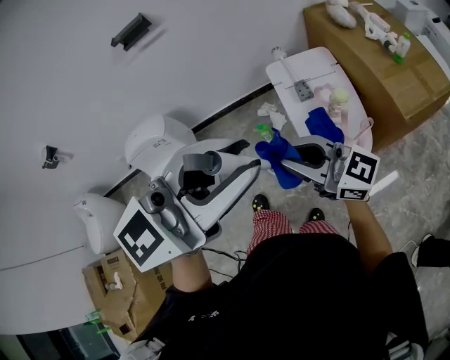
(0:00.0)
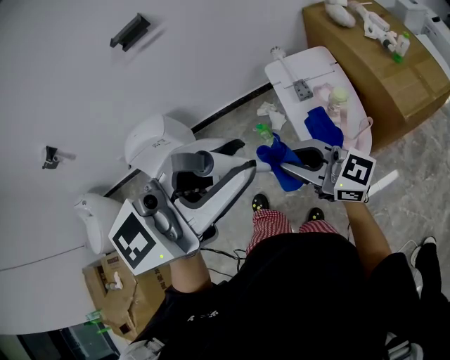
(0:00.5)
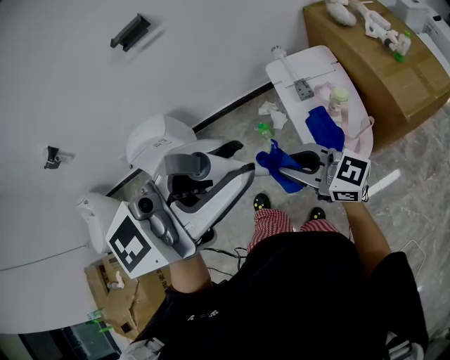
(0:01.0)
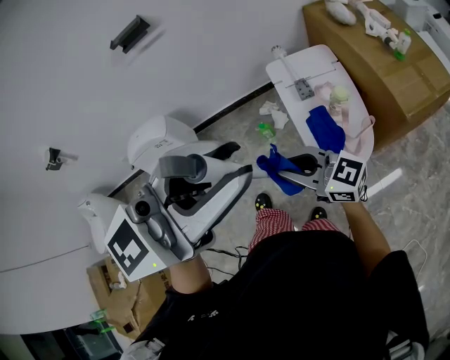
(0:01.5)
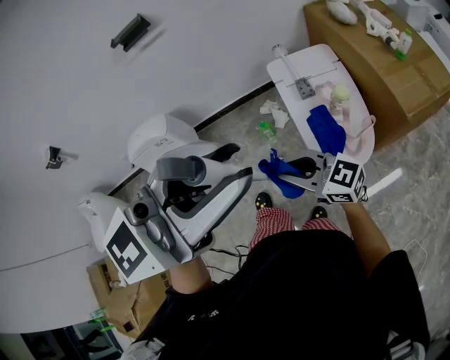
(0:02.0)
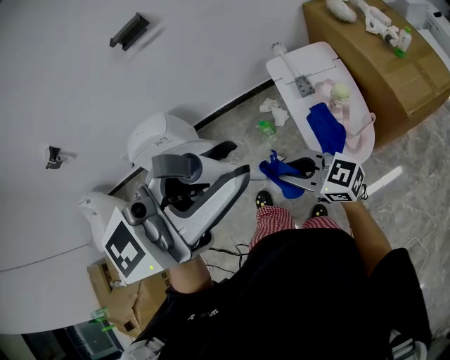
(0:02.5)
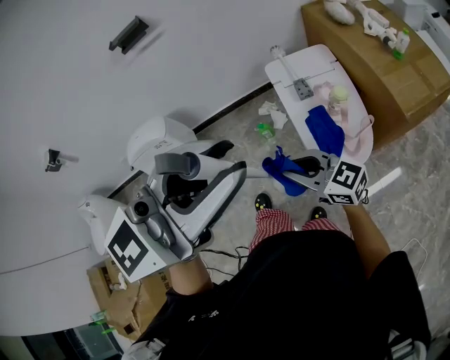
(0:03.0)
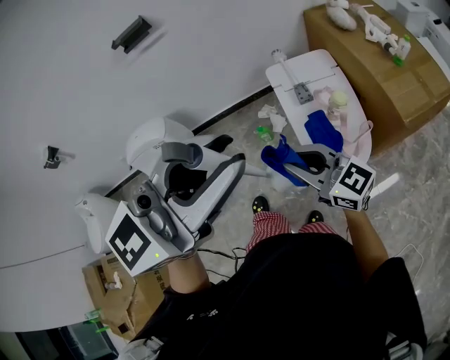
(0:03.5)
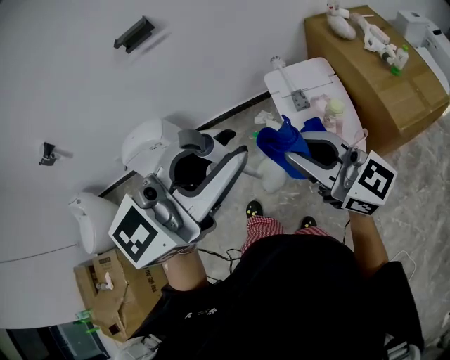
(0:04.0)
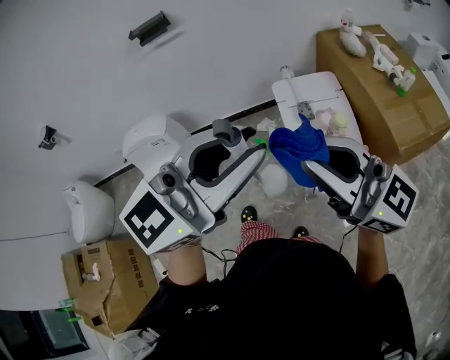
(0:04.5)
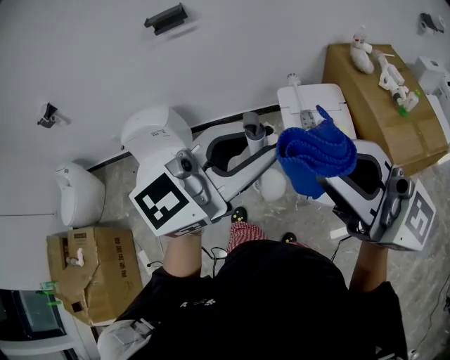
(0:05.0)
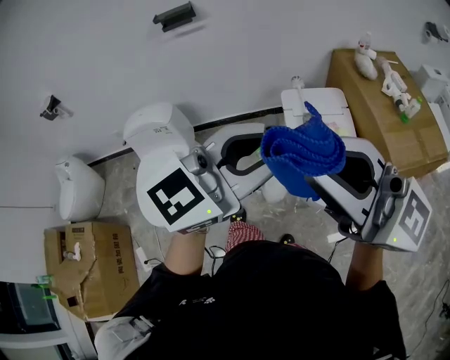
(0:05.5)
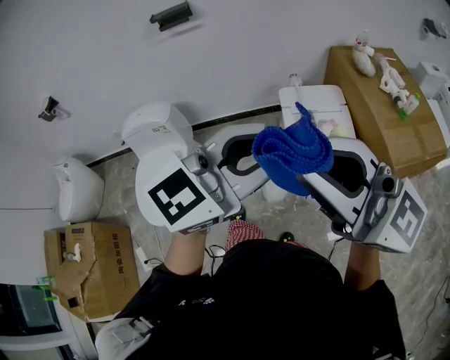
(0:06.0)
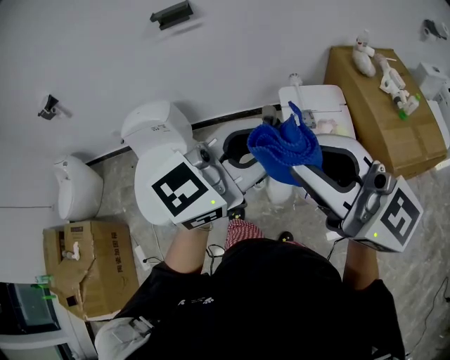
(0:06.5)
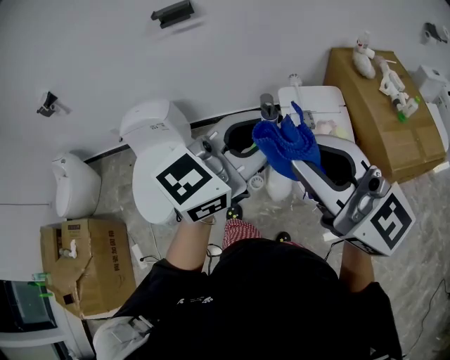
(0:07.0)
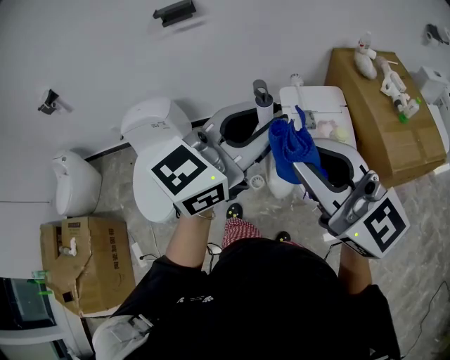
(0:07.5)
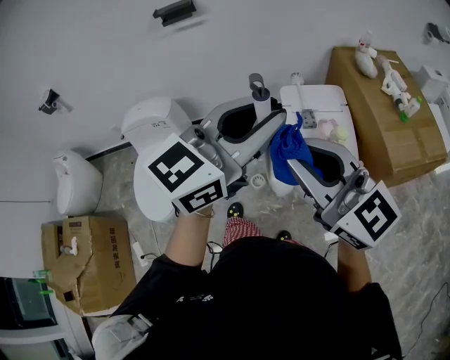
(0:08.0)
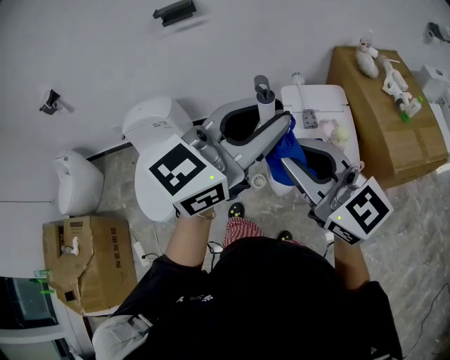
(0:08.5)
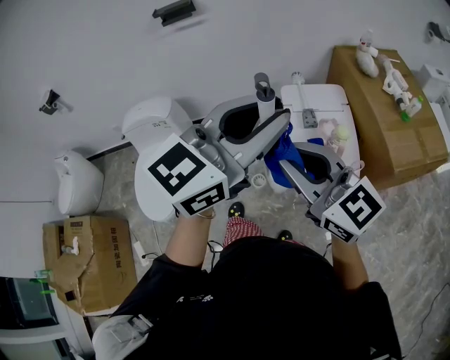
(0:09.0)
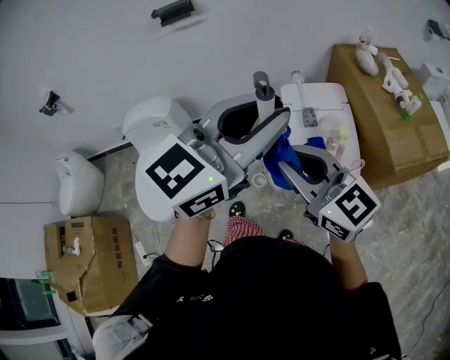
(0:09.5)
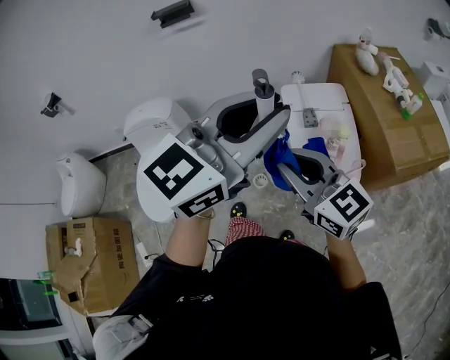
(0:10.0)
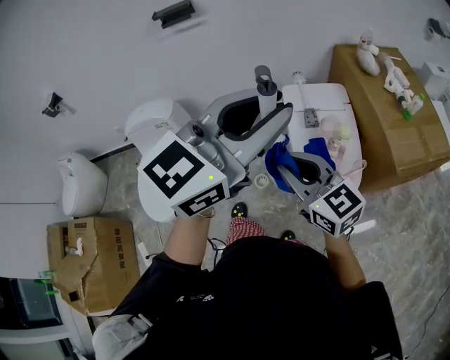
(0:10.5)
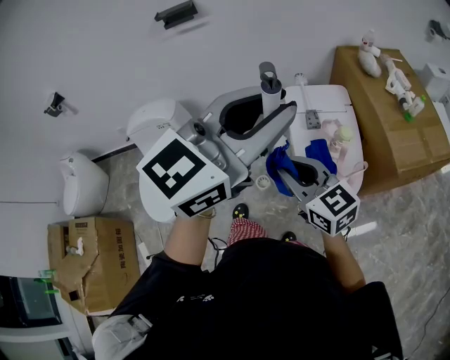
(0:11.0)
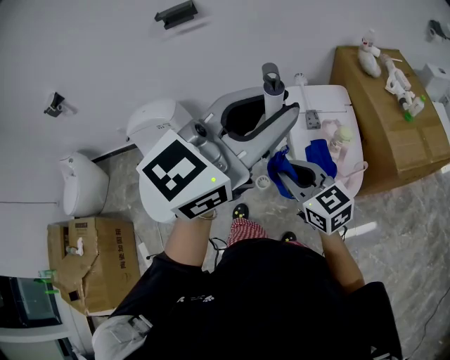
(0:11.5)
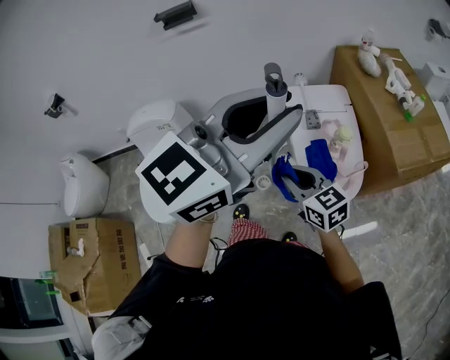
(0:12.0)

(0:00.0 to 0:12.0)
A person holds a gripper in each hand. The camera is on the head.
0:00.0 - 0:02.0: The right gripper shifts about 10 cm downward.
0:02.0 - 0:04.0: The right gripper is displaced upward by some 15 cm, and rotates about 20 degrees.
0:04.0 - 0:06.0: The right gripper is displaced upward by roughly 15 cm.
0:06.0 - 0:08.0: The left gripper shifts by about 5 cm, while the right gripper shifts some 5 cm downward, and swivels approximately 20 degrees.
0:08.0 - 0:10.0: The right gripper moves downward, about 10 cm.
0:10.0 - 0:12.0: The right gripper travels downward by about 15 cm.

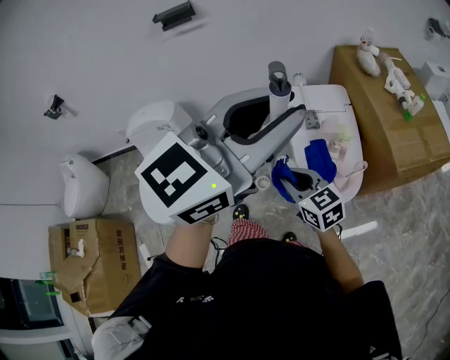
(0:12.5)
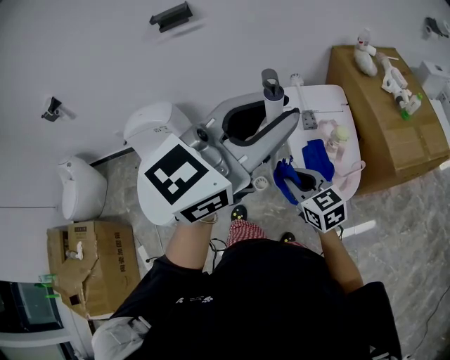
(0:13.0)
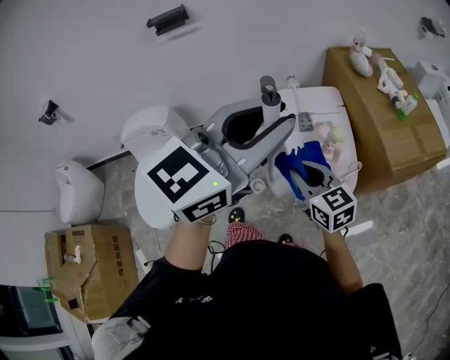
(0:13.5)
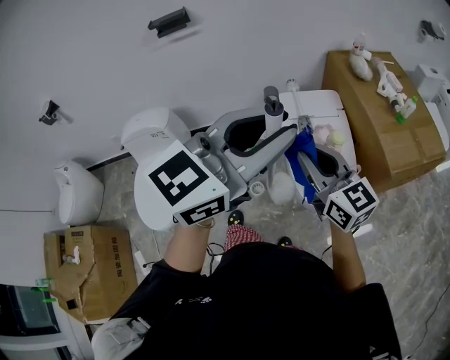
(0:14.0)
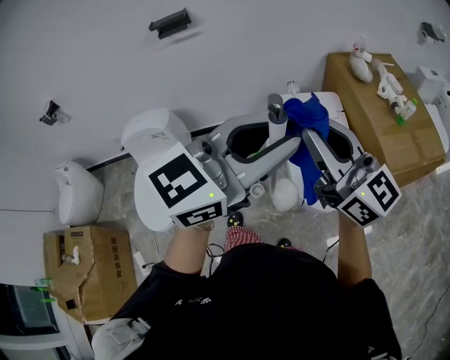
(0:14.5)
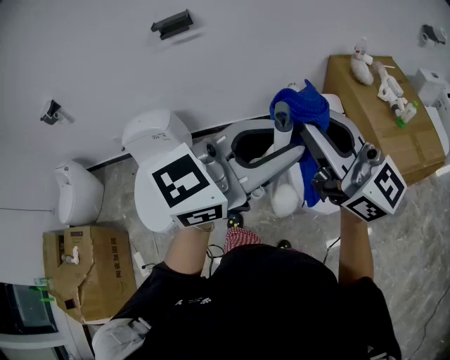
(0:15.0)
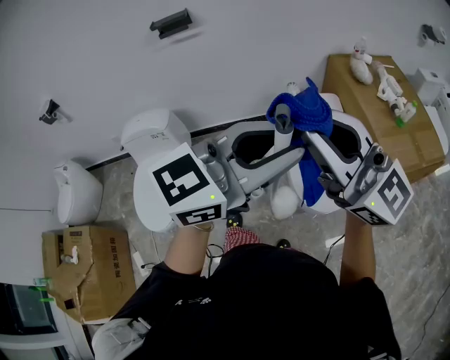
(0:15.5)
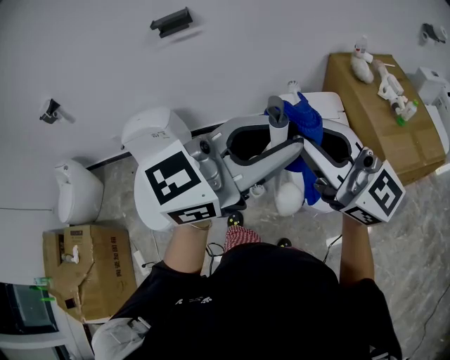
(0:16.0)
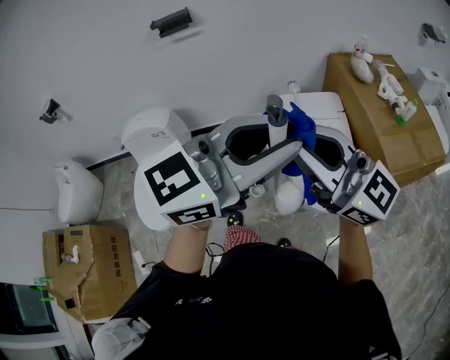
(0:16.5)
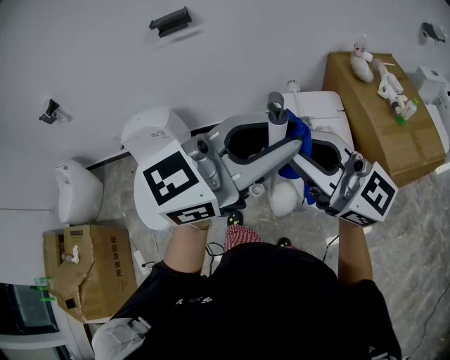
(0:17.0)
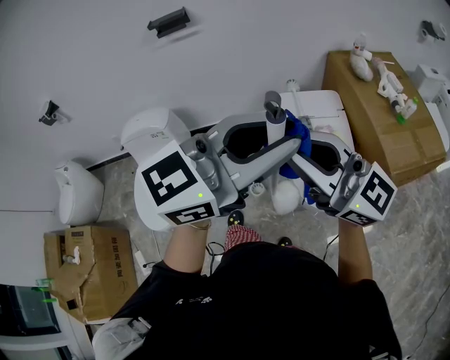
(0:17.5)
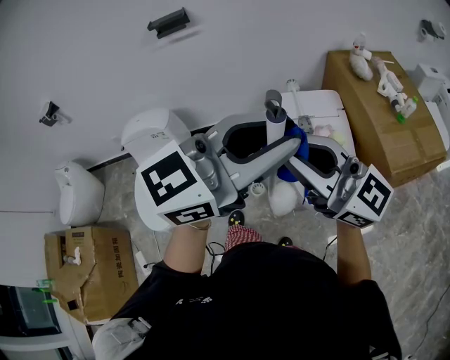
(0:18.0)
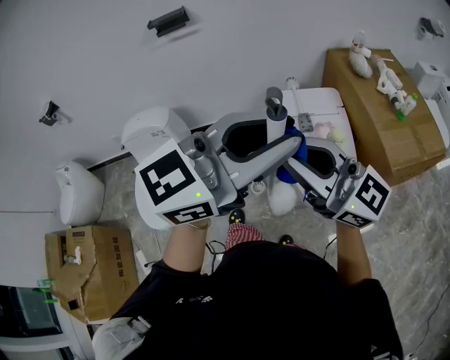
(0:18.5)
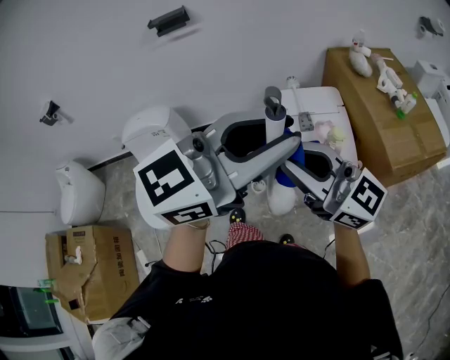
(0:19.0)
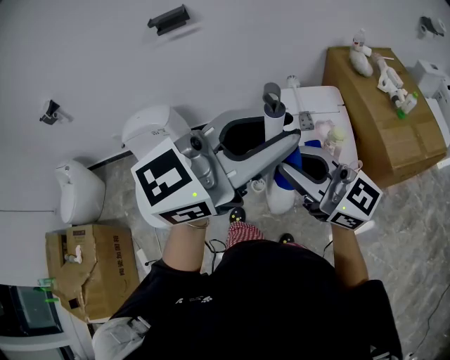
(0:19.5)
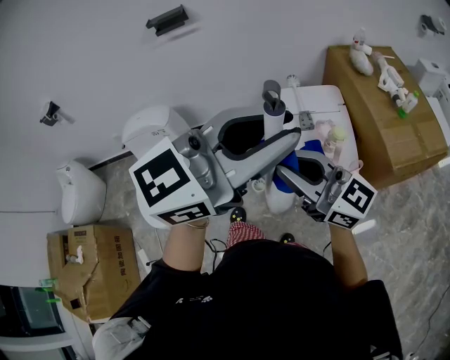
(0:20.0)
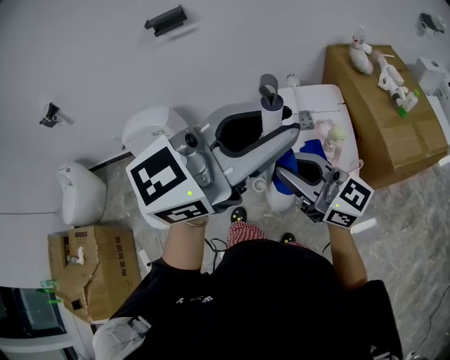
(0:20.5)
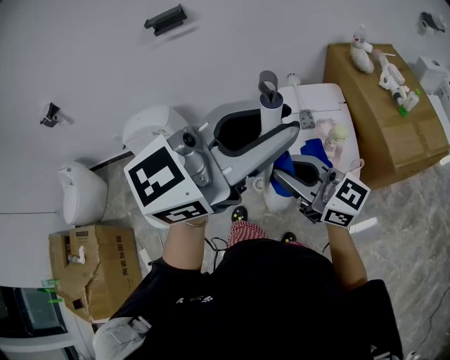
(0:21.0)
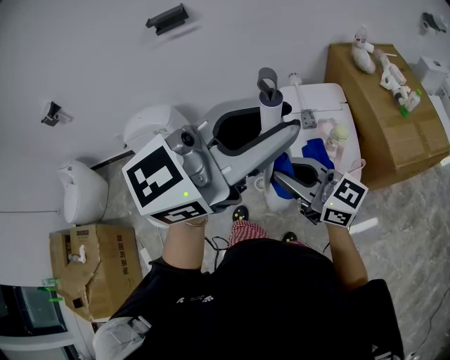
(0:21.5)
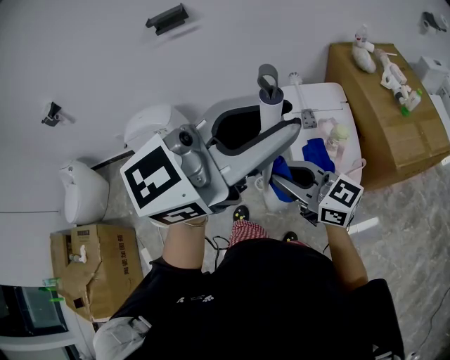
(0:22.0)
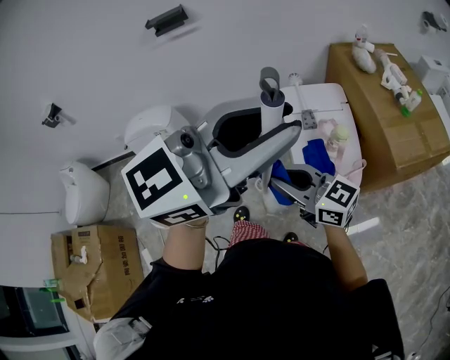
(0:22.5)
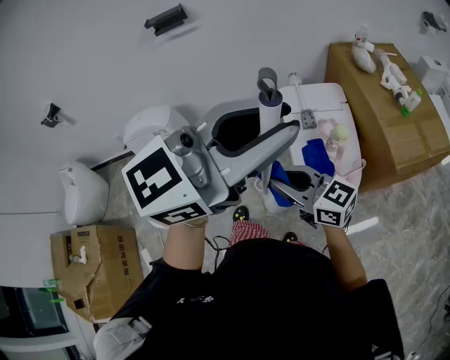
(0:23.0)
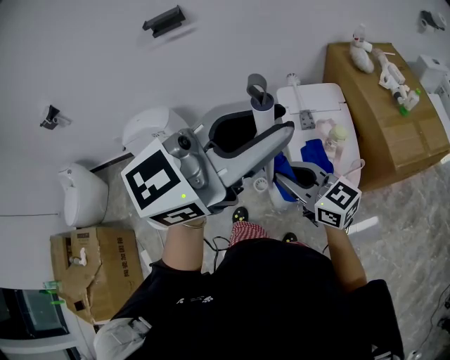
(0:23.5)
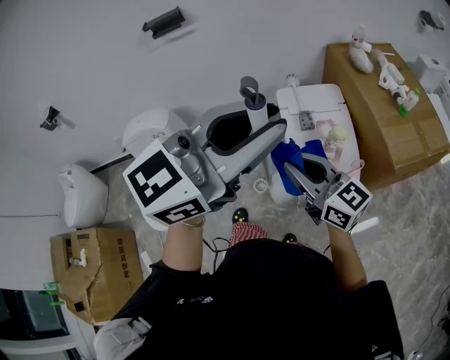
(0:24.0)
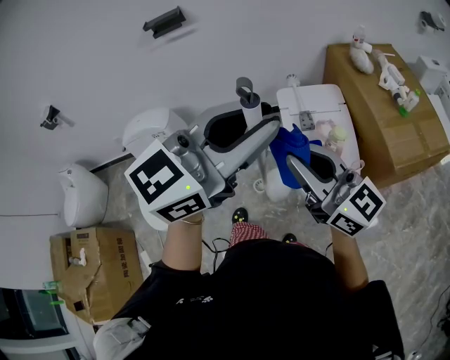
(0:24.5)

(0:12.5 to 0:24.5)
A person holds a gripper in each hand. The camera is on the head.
0:12.5 - 0:14.5: The right gripper travels upward by approximately 25 cm, and tilts its fingers about 40 degrees upward.
0:16.5 - 0:18.5: The grippers move only a little.
0:18.5 - 0:20.5: The right gripper is displaced downward by roughly 10 cm.
0:20.5 - 0:22.5: The right gripper moves downward, some 5 cm.
0:22.5 - 0:24.5: The right gripper moves upward, roughly 10 cm.

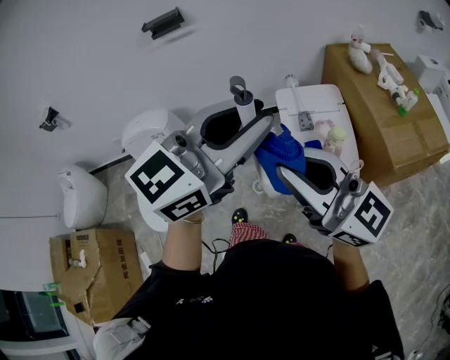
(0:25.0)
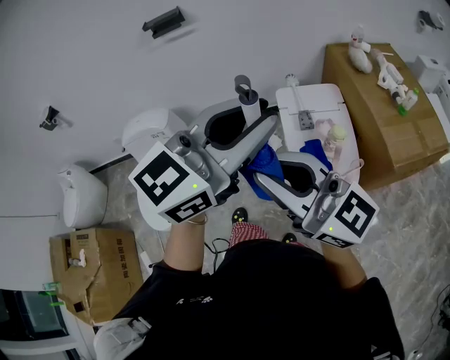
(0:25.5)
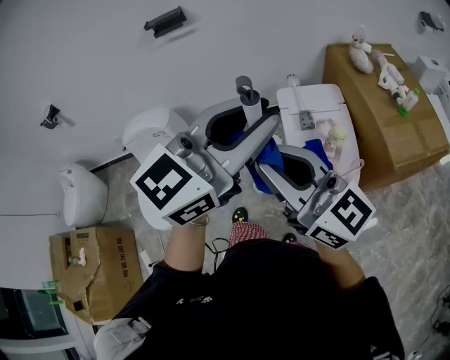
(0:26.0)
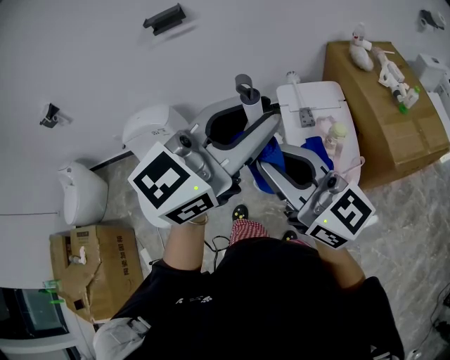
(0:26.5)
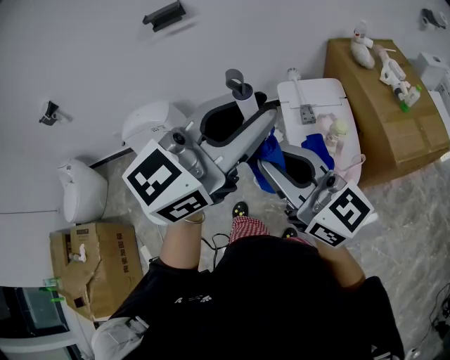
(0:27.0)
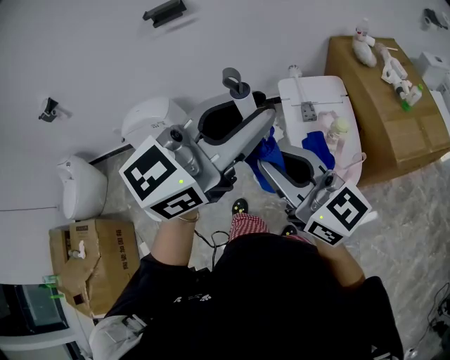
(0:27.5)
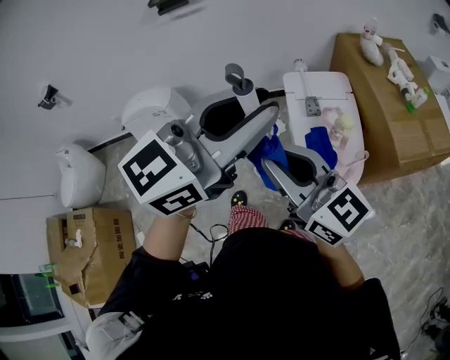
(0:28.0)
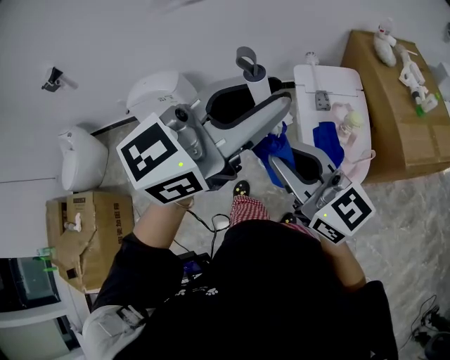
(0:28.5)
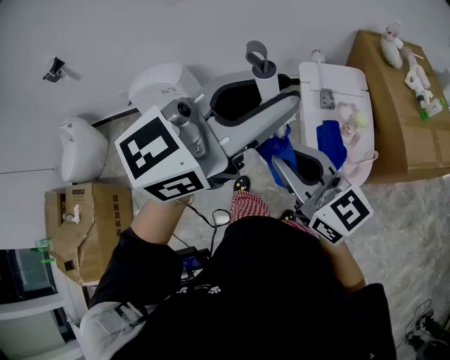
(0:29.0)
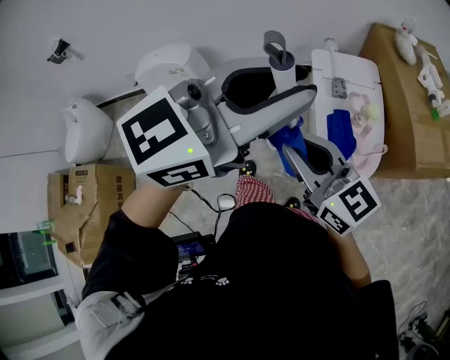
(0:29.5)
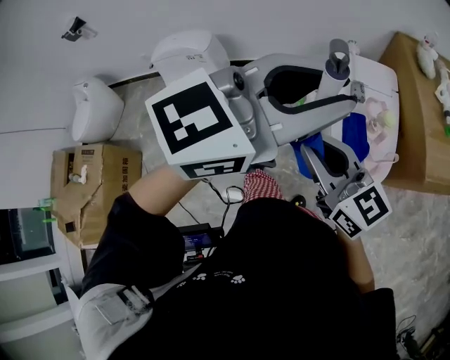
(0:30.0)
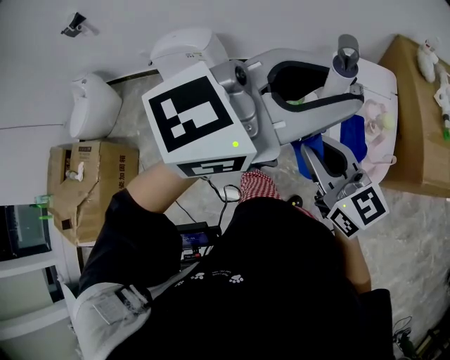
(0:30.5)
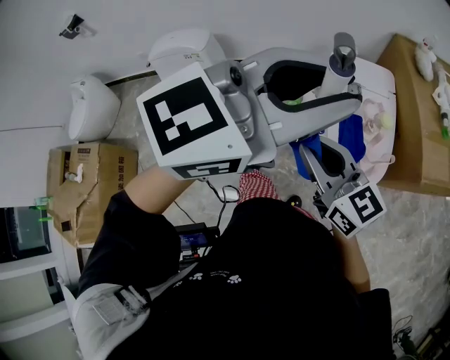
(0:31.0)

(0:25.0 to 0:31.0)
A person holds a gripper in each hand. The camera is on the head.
0:25.0 - 0:27.0: There are only small adjustments of the grippers.
0:27.0 - 0:29.0: The right gripper shifts some 5 cm downward.
0:29.0 - 0:31.0: There are only small adjustments of the grippers.
